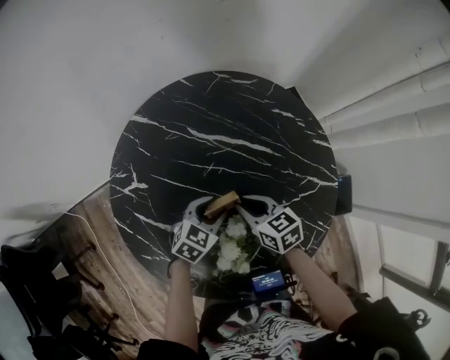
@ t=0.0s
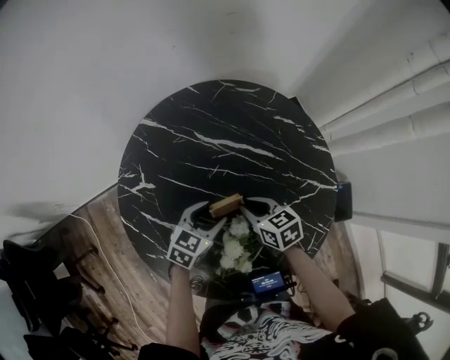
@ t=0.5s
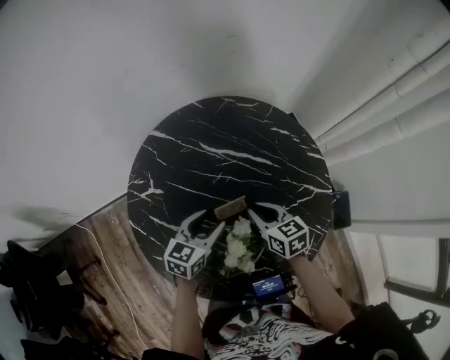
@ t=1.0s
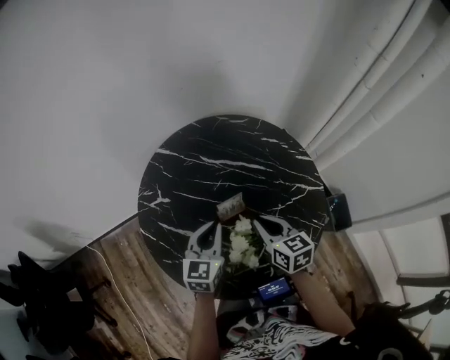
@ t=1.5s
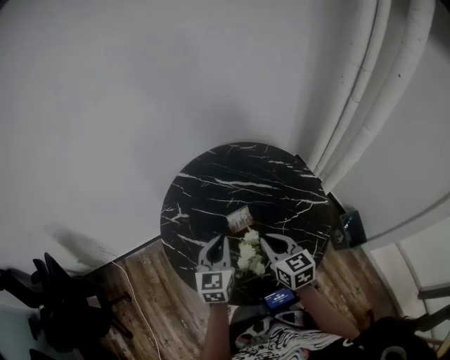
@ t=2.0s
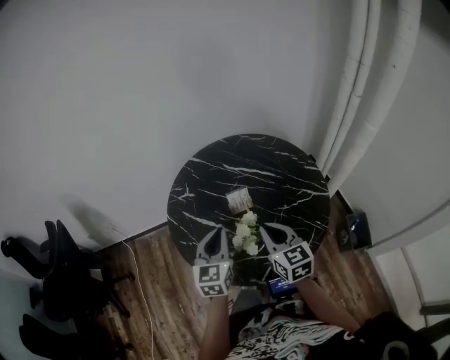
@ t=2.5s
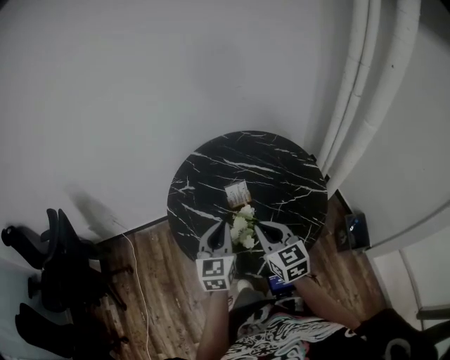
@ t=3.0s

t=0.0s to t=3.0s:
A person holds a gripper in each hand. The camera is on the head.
t=0.0s to t=1.5s: The right gripper is displaced upward and backward by about 15 cm, and swivels about 20 degrees, while the left gripper is displaced upward by some 15 cm, turns by roughly 40 degrees, and closes its fingers.
t=1.5s to t=3.0s: The grippers both shift backward and upward by approximately 15 cm. The left gripper rotates about 20 degrees. Meanwhile the right gripper changes its angle by approximately 20 degrees.

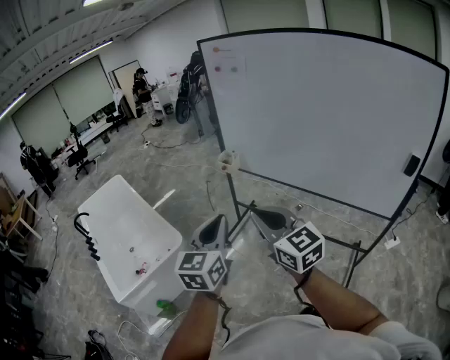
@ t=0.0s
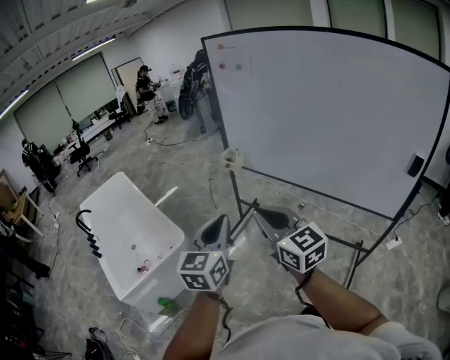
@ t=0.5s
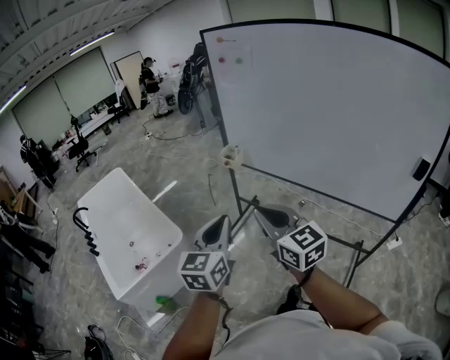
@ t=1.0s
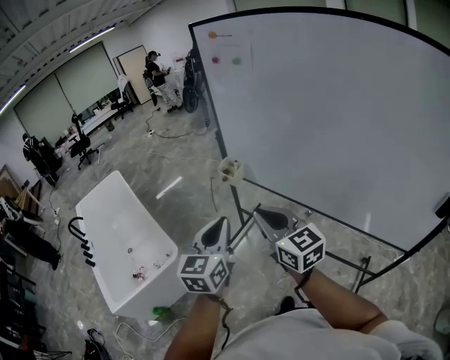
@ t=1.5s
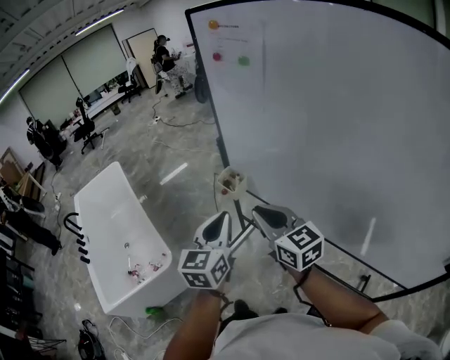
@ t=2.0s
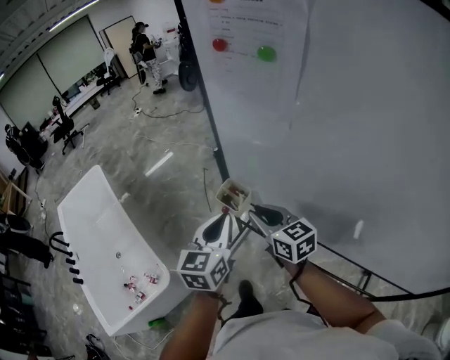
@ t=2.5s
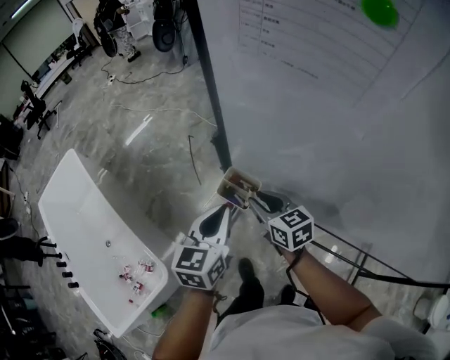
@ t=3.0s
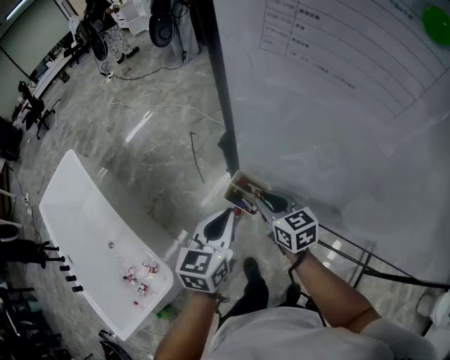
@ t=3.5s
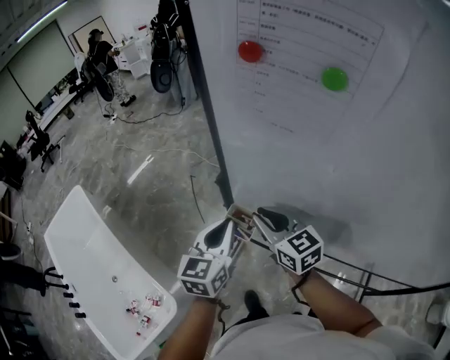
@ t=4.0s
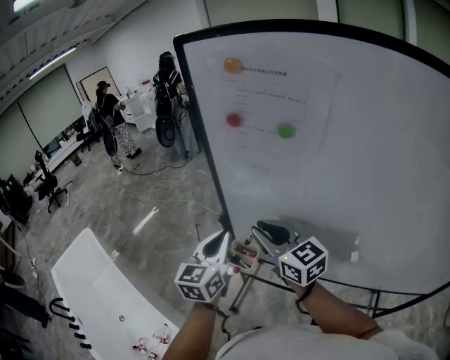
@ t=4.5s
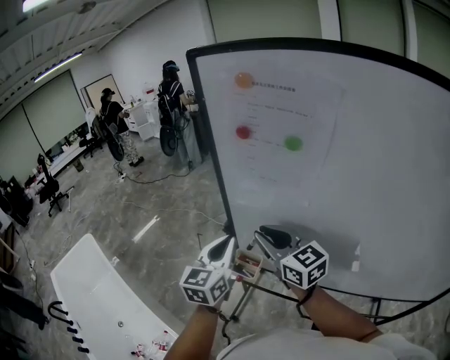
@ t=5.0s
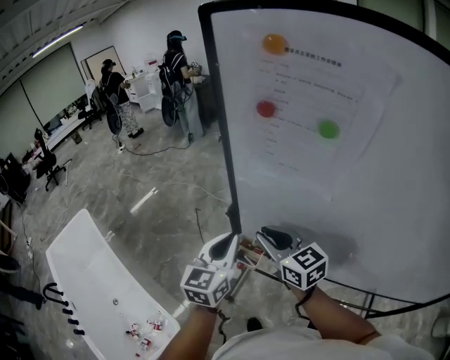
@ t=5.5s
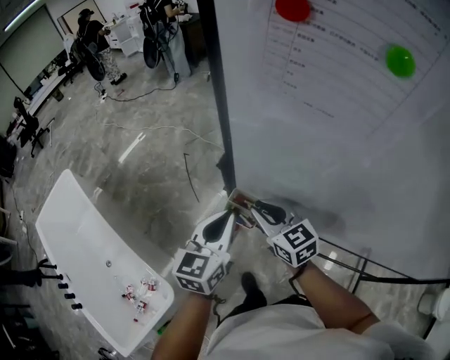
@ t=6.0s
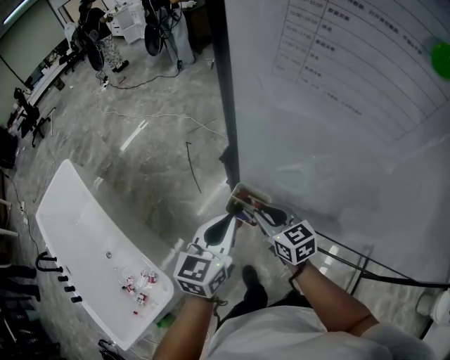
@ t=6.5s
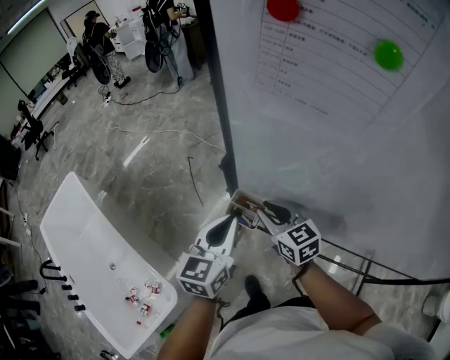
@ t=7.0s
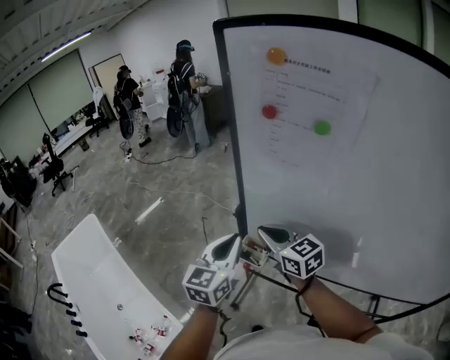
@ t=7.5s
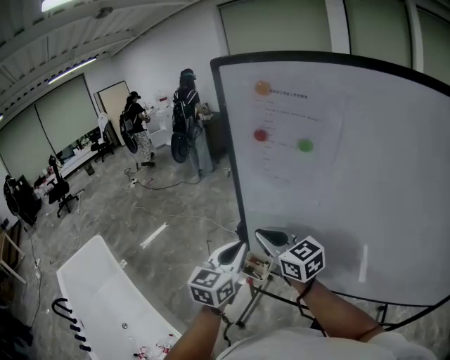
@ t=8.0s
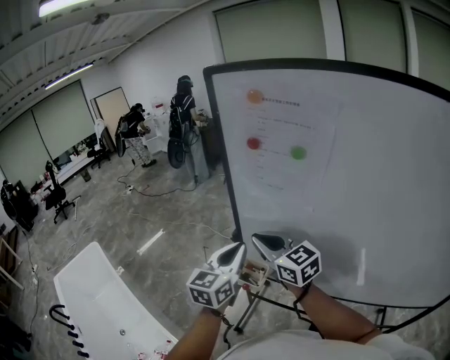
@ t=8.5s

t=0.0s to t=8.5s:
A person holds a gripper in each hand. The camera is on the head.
t=0.0s to t=2.0s: The two grippers travel together, forward, about 40 cm.
t=2.0s to t=4.0s: The two grippers go about 35 cm forward.
t=4.0s to t=6.5s: The left gripper shifts some 5 cm downward. The right gripper is displaced downward by roughly 15 cm.
t=6.5s to t=8.5s: The right gripper heads upward, covering approximately 30 cm, and changes its angle by about 30 degrees. Meanwhile the left gripper shifts about 20 cm upward.

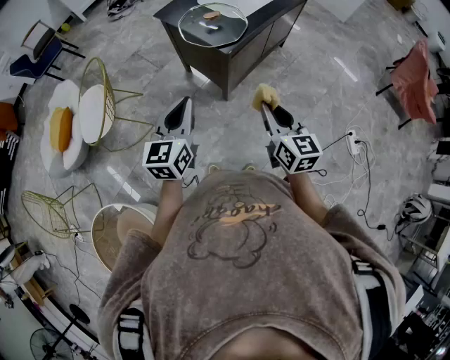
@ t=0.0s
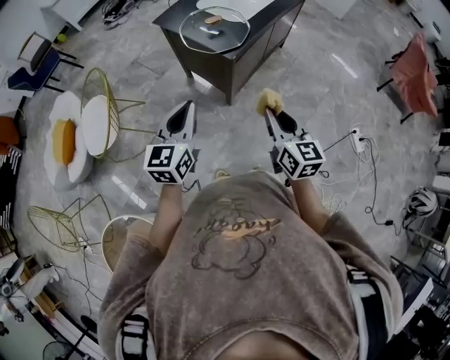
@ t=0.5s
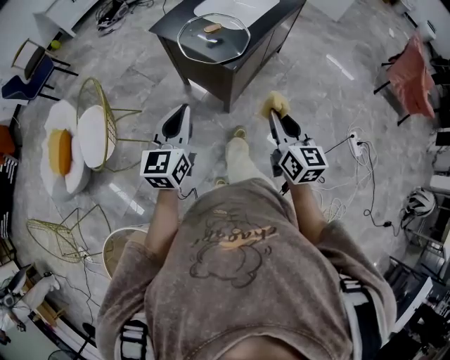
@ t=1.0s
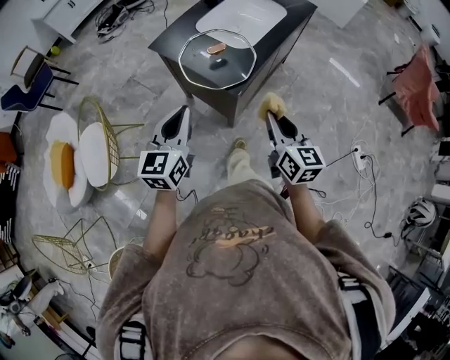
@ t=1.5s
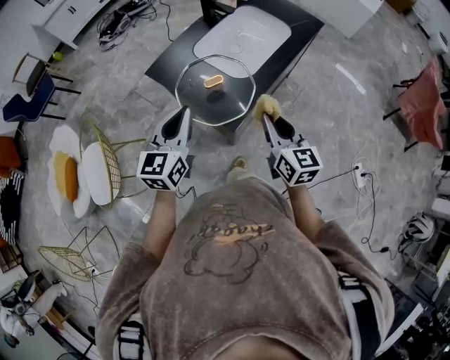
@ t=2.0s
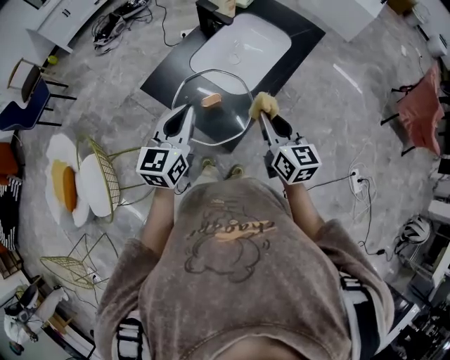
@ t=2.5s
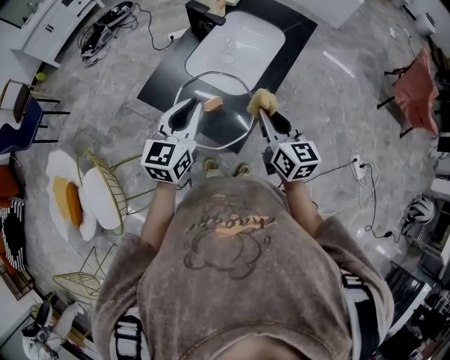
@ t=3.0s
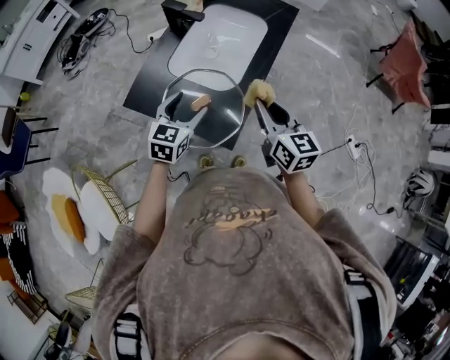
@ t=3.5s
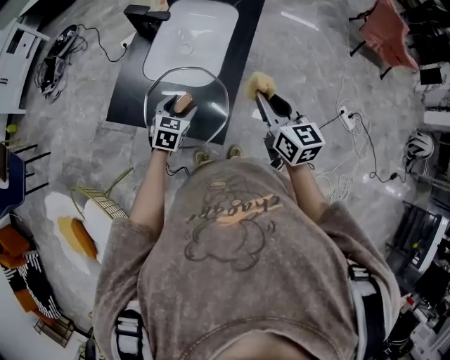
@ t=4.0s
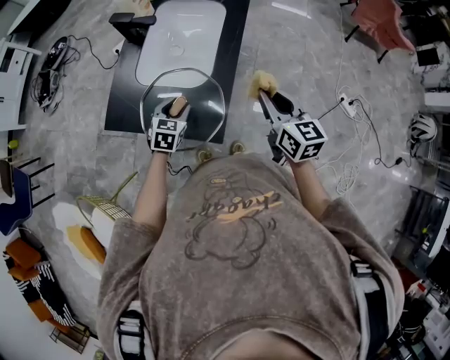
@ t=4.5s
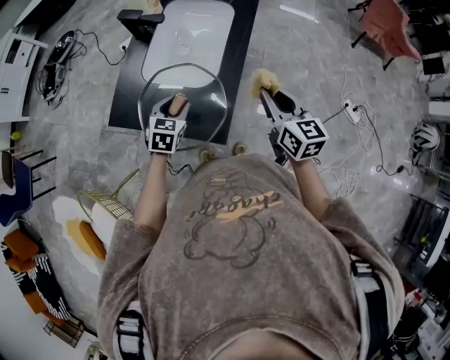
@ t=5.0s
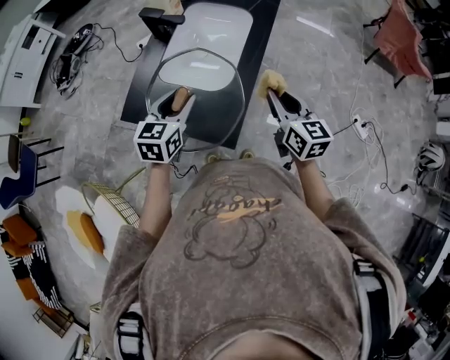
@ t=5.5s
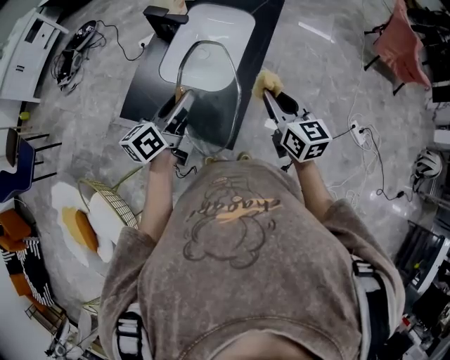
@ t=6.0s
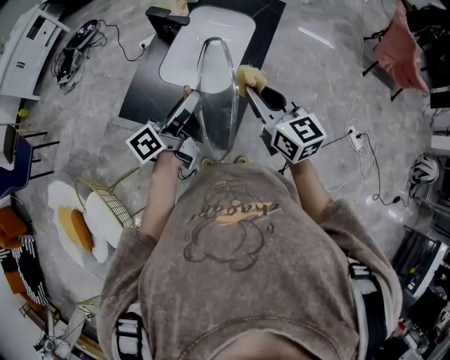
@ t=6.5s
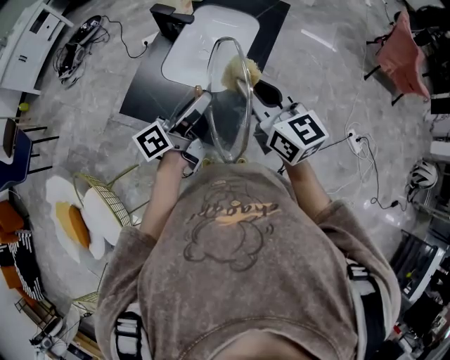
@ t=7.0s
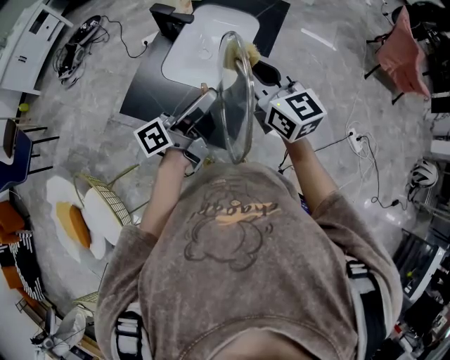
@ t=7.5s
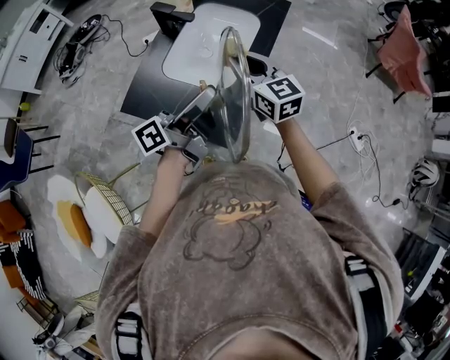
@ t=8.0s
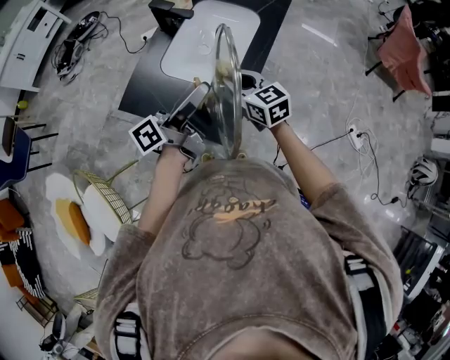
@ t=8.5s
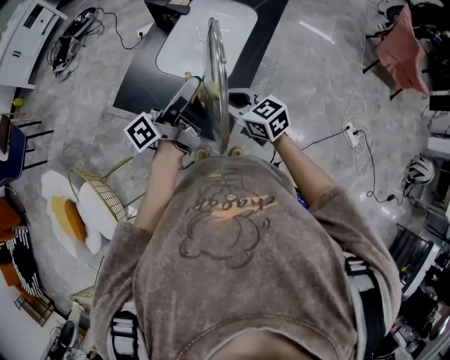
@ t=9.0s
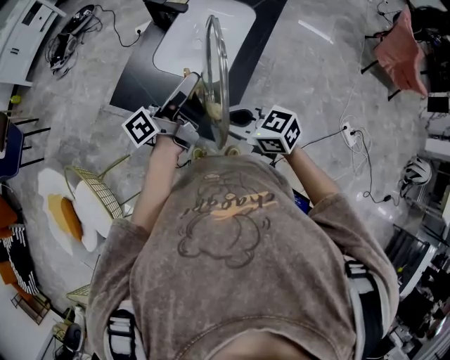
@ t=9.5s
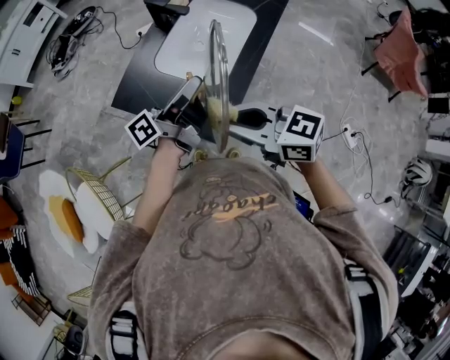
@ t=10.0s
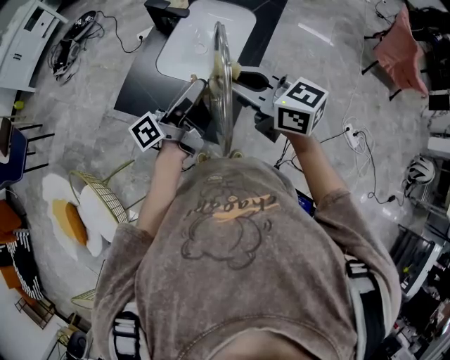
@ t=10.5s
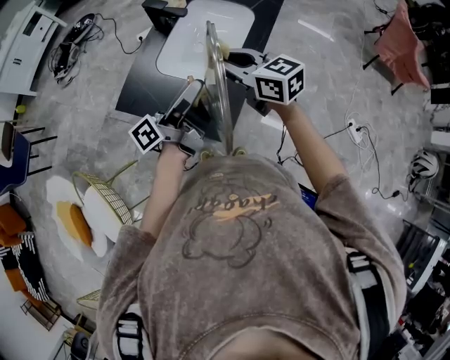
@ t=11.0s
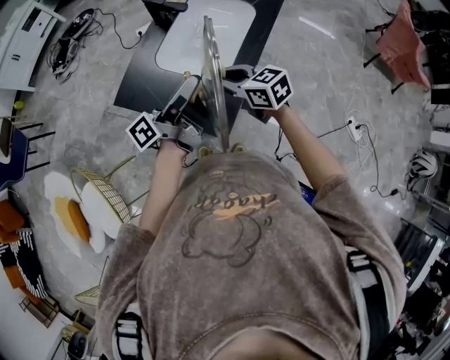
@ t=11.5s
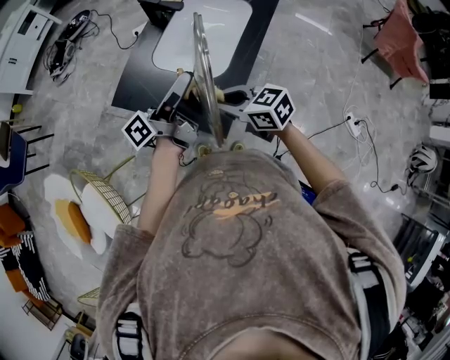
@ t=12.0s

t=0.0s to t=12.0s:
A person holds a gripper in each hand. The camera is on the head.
t=0.0s to t=2.0s: Both grippers move forward, some 35 cm.
t=2.0s to t=4.0s: The right gripper shifts about 10 cm forward; the left gripper is displaced downward and forward by some 30 cm, tilts its fingers some 30 degrees downward, and opens.
t=4.0s to t=6.0s: The left gripper shifts about 20 cm upward, tips its fingers upward by approximately 40 degrees, and closes up.
t=6.0s to t=8.0s: The left gripper travels to the right and upward by roughly 10 cm, and rotates approximately 30 degrees. The right gripper travels to the left and forward by about 15 cm, and moves about 10 cm upward and comes back.
t=8.0s to t=10.0s: The right gripper moves backward, roughly 15 cm, and rotates about 40 degrees.
t=10.0s to t=12.0s: The right gripper shifts some 10 cm downward, and moves approximately 15 cm forward and comes back.

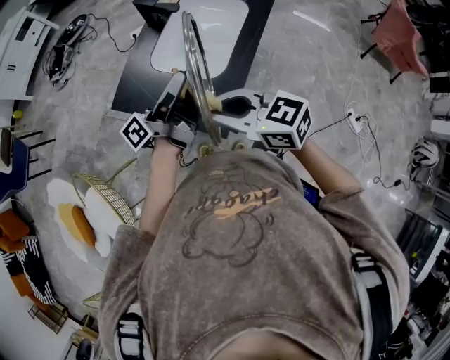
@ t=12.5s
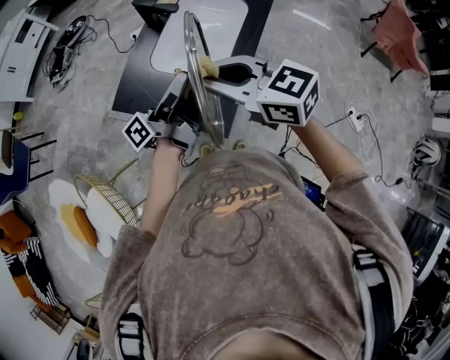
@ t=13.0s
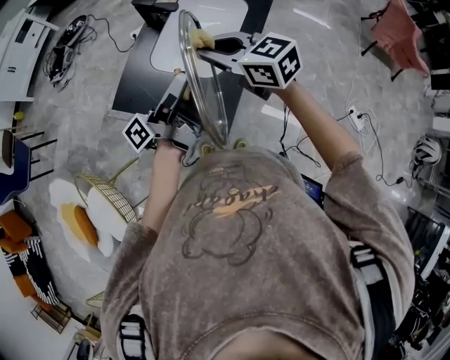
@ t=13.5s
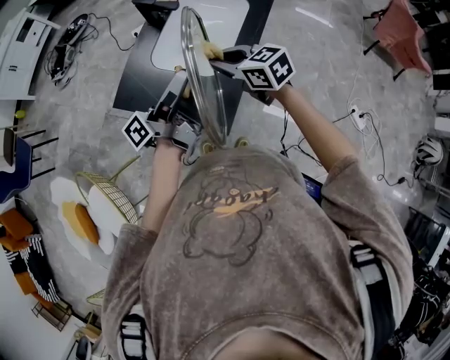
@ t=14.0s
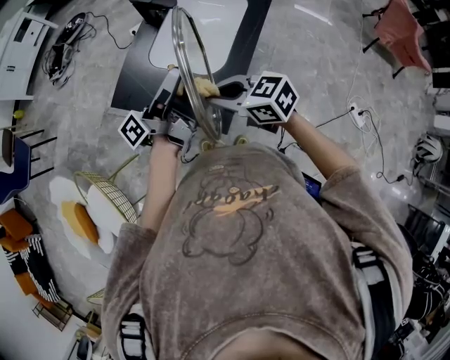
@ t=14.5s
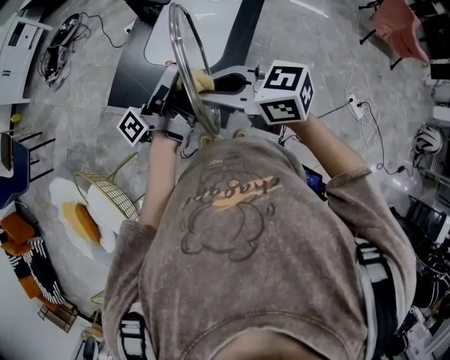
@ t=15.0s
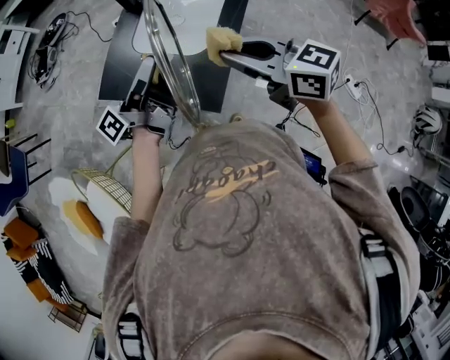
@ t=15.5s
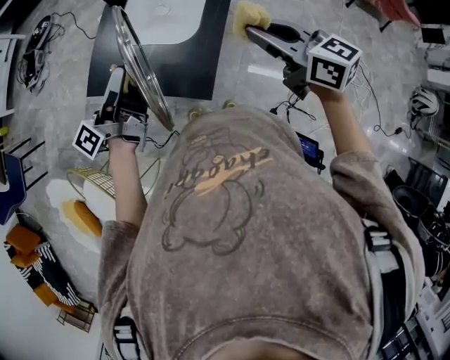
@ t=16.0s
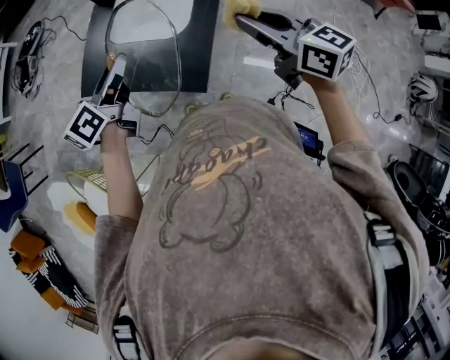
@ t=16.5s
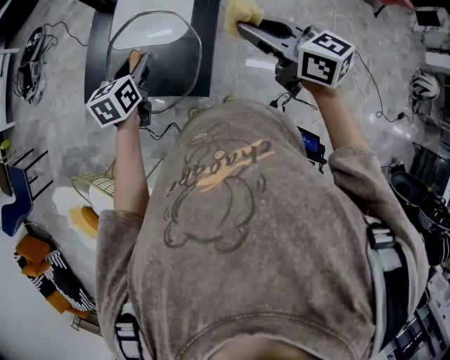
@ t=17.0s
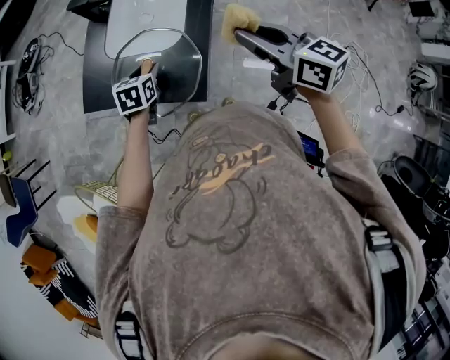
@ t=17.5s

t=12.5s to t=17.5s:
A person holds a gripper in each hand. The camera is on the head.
t=12.5s to t=15.0s: The right gripper moves some 15 cm forward and comes back.
t=15.0s to t=17.5s: The left gripper is displaced downward by roughly 20 cm, and tips its fingers downward by about 70 degrees. Meanwhile the right gripper heads to the right, covering approximately 15 cm, and rotates about 40 degrees.
